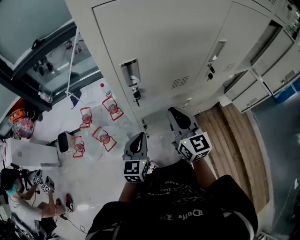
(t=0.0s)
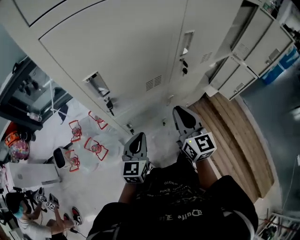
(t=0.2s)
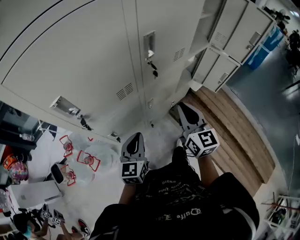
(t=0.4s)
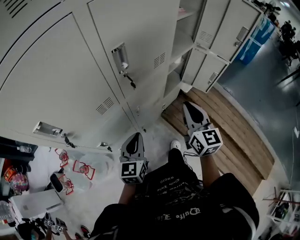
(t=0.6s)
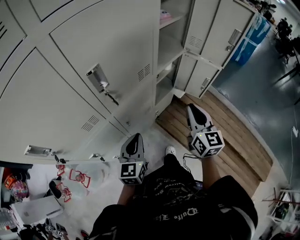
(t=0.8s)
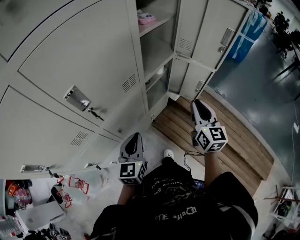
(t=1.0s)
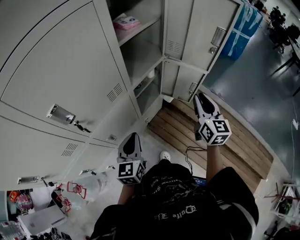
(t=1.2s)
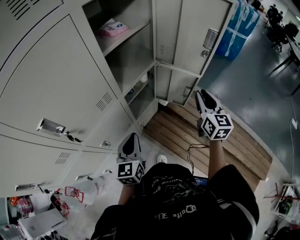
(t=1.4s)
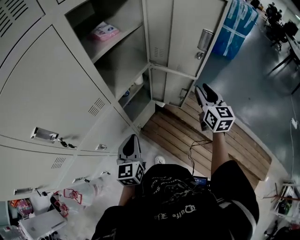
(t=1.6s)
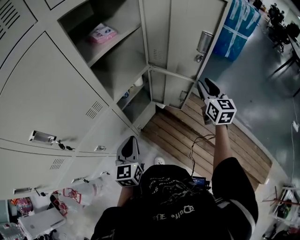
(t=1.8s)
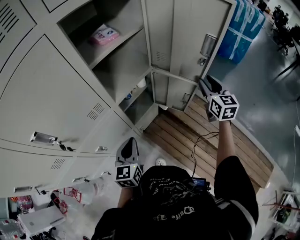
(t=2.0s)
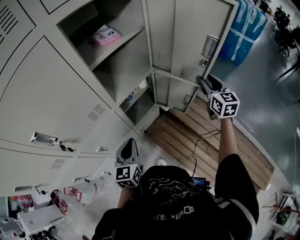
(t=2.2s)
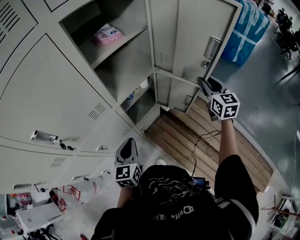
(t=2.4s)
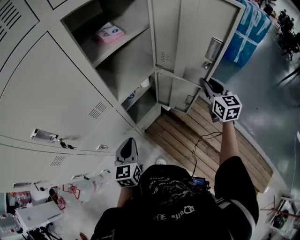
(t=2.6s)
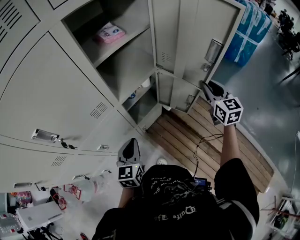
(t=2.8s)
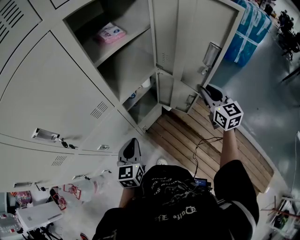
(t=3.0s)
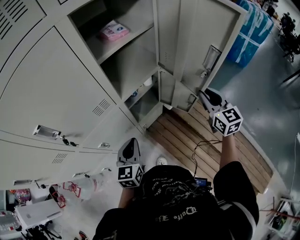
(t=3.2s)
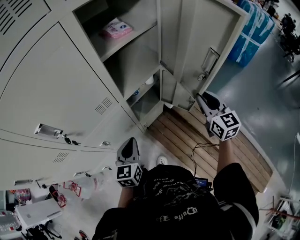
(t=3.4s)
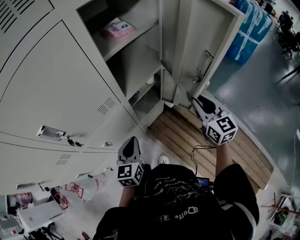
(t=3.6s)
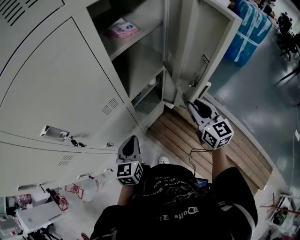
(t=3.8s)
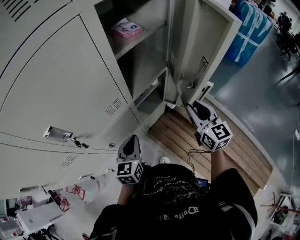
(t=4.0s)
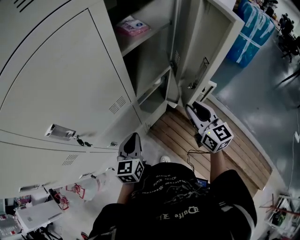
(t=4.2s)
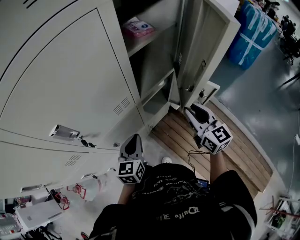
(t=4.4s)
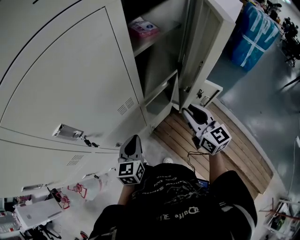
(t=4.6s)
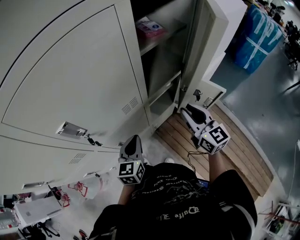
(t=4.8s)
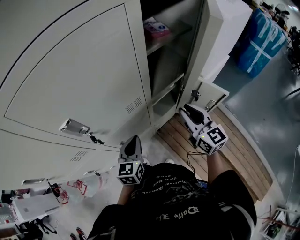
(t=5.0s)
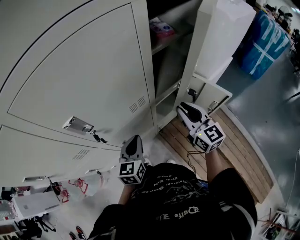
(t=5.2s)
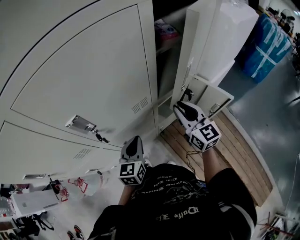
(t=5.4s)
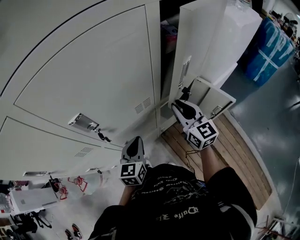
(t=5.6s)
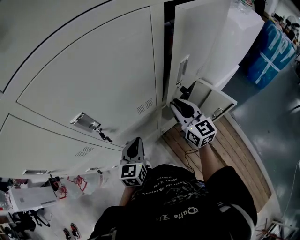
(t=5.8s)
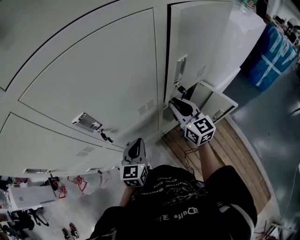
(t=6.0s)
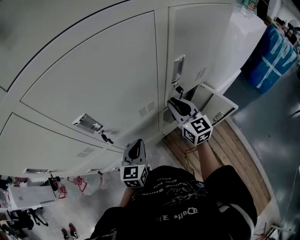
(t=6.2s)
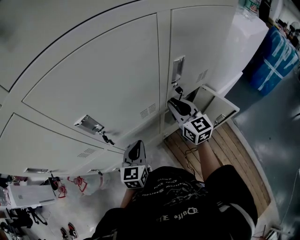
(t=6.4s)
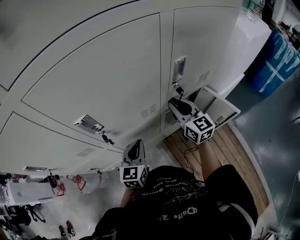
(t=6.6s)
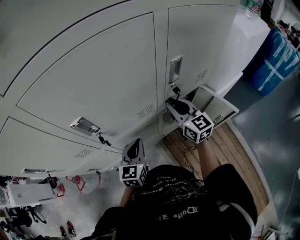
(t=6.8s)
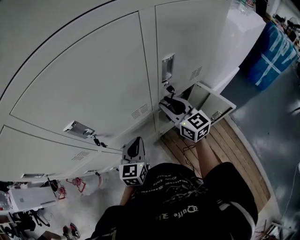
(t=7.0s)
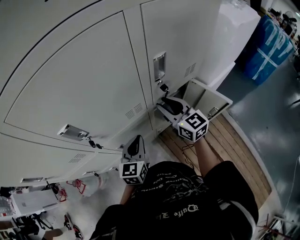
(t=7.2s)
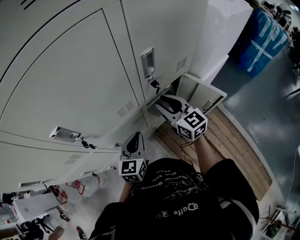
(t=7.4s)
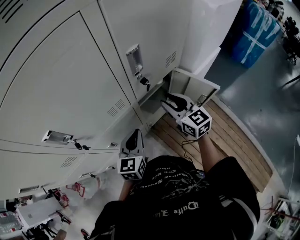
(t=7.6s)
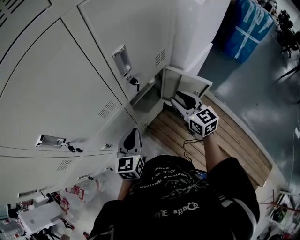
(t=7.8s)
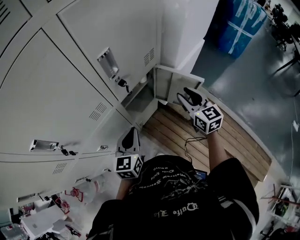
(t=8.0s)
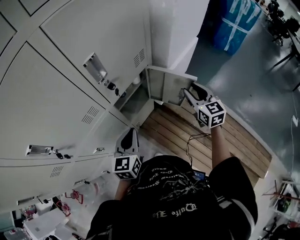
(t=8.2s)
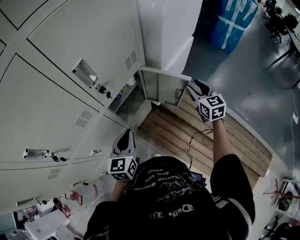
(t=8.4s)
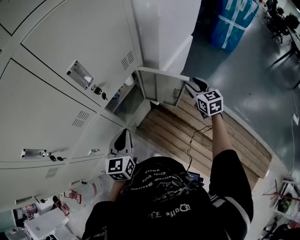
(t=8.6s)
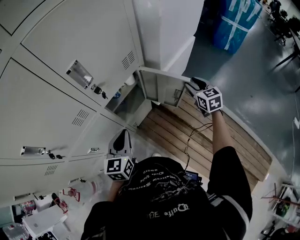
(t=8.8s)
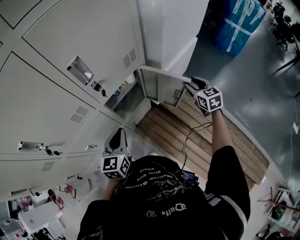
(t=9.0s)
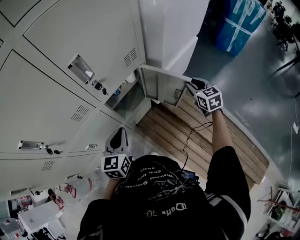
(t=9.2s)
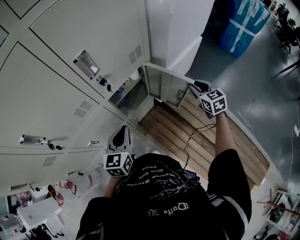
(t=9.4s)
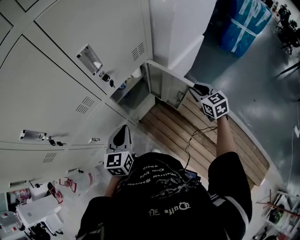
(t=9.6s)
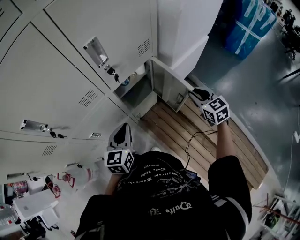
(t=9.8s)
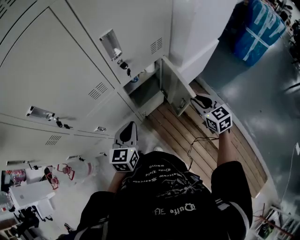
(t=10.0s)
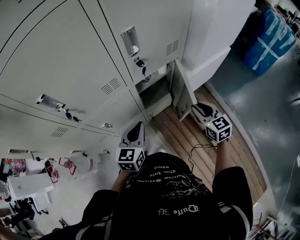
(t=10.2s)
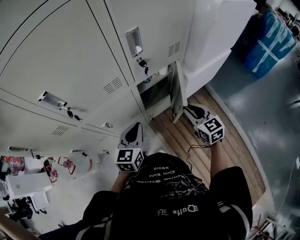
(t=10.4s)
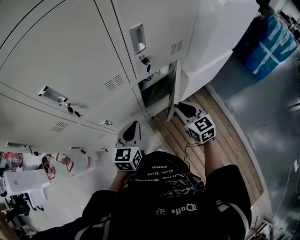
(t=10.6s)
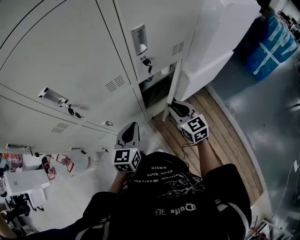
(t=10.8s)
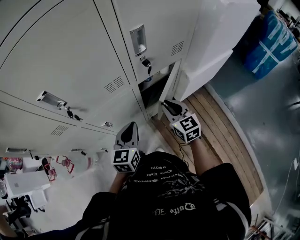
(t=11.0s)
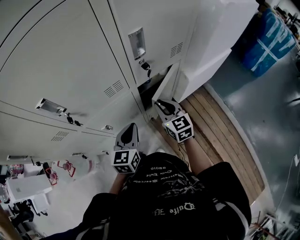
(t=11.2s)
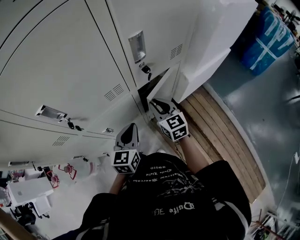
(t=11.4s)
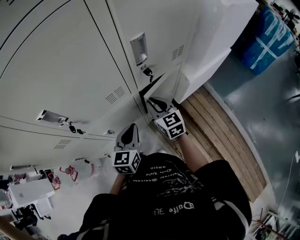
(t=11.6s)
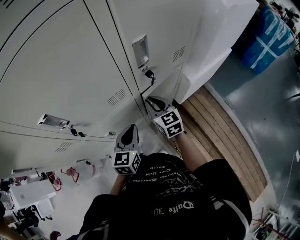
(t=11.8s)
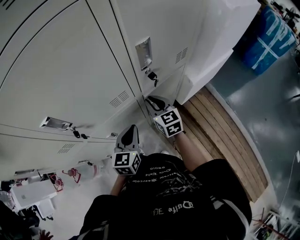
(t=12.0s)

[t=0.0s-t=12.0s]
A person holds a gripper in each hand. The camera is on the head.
t=0.0s to t=1.6s: The two grippers travel together, approximately 60 cm. The right gripper rotates about 40 degrees, and opens up. Meanwhile the left gripper turns by approximately 20 degrees.
t=3.0s to t=4.4s: The right gripper is displaced to the left by roughly 20 cm, while the left gripper moves to the left, some 5 cm.
t=4.4s to t=6.0s: The left gripper travels to the left by some 5 cm. The right gripper shifts roughly 15 cm to the left and forward.
t=6.0s to t=7.6s: The two grippers go roughly 10 cm to the right.
t=7.6s to t=9.0s: The right gripper shifts roughly 30 cm to the right, and rotates some 30 degrees; the left gripper is displaced to the right by about 5 cm.
t=9.0s to t=10.4s: The right gripper travels to the left and backward by about 20 cm, swivels roughly 20 degrees, and closes up. The left gripper changes place by roughly 5 cm.
t=10.4s to t=12.0s: The right gripper goes some 20 cm to the left and forward. Meanwhile the left gripper goes some 5 cm forward.

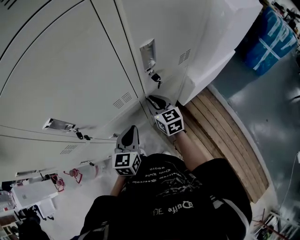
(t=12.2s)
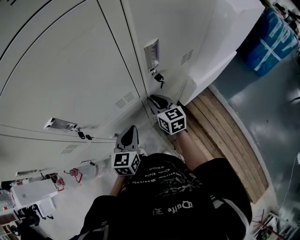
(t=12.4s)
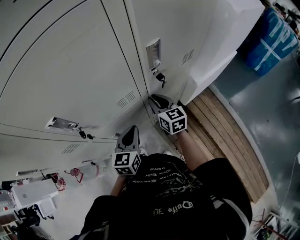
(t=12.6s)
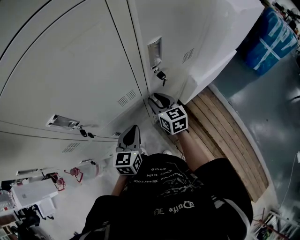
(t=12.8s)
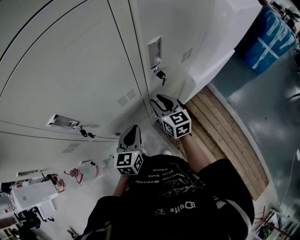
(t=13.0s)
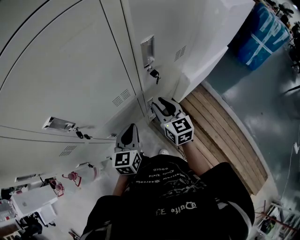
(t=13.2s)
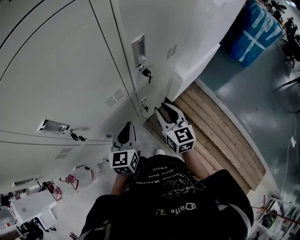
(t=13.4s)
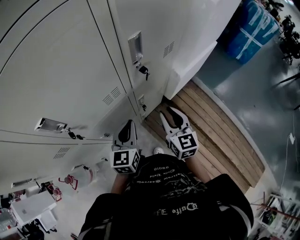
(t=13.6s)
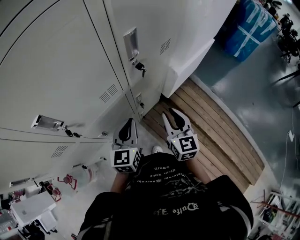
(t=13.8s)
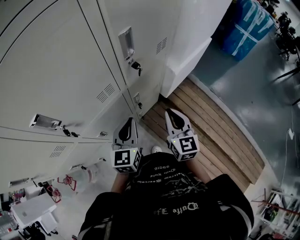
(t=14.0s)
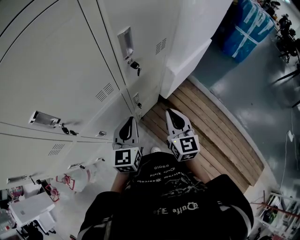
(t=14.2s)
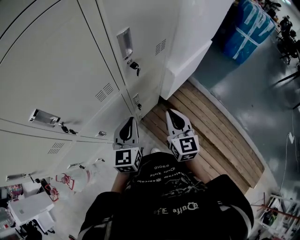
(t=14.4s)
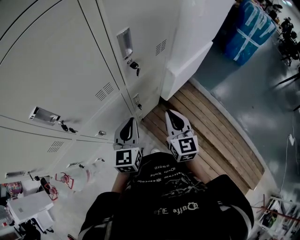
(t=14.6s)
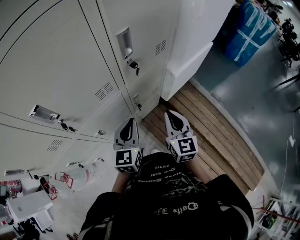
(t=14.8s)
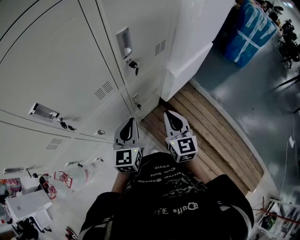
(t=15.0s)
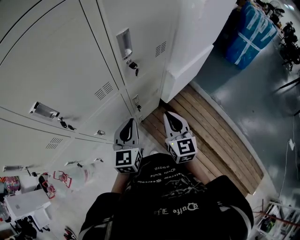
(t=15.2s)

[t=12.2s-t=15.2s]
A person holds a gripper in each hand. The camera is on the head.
t=12.2s to t=13.8s: The right gripper heads backward and to the right, covering approximately 15 cm, and rotates roughly 20 degrees.
t=13.8s to t=15.2s: The right gripper closes its fingers.

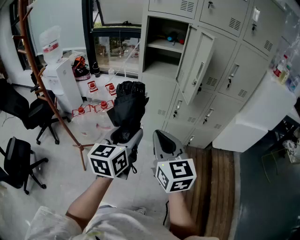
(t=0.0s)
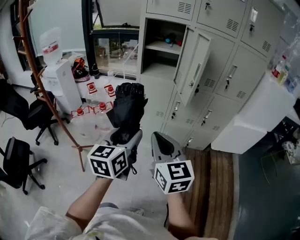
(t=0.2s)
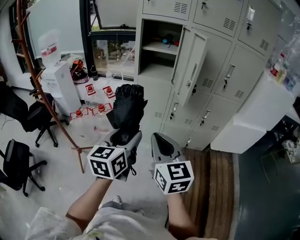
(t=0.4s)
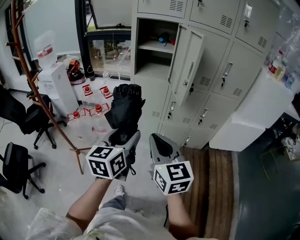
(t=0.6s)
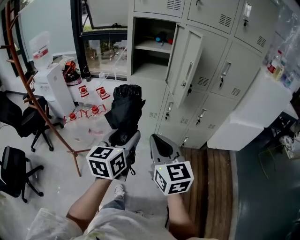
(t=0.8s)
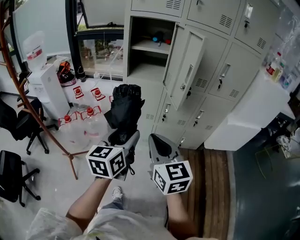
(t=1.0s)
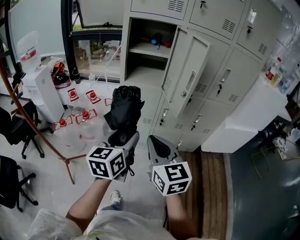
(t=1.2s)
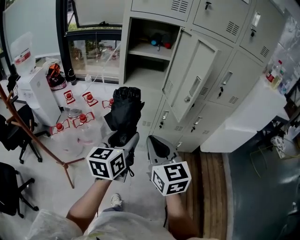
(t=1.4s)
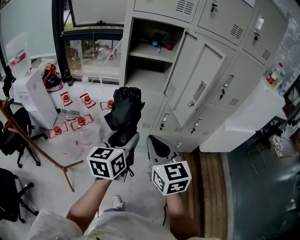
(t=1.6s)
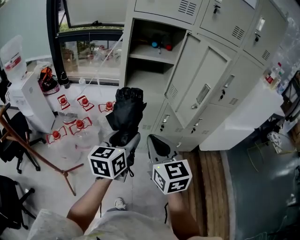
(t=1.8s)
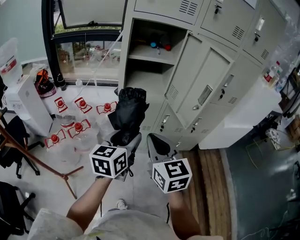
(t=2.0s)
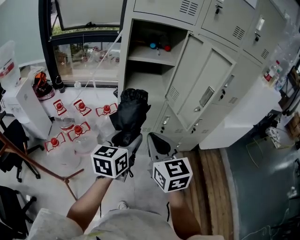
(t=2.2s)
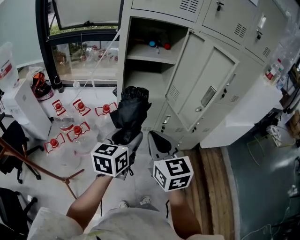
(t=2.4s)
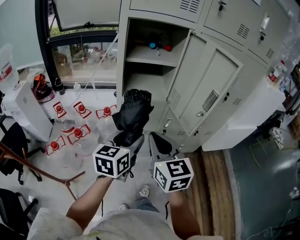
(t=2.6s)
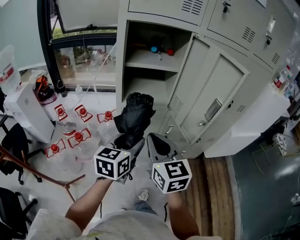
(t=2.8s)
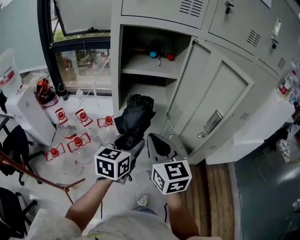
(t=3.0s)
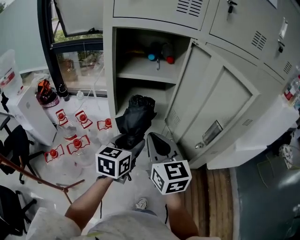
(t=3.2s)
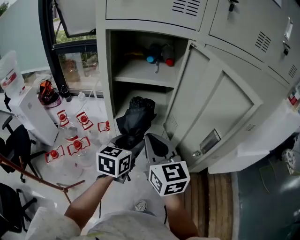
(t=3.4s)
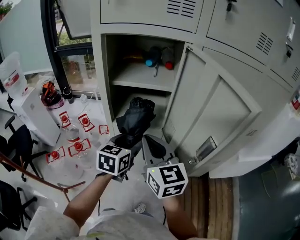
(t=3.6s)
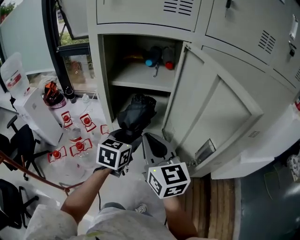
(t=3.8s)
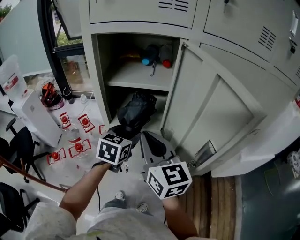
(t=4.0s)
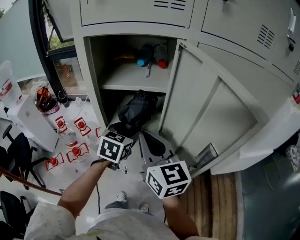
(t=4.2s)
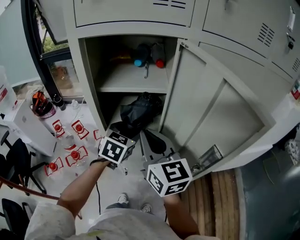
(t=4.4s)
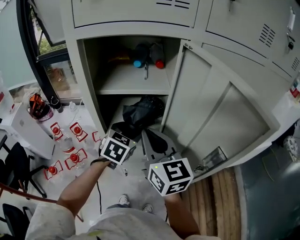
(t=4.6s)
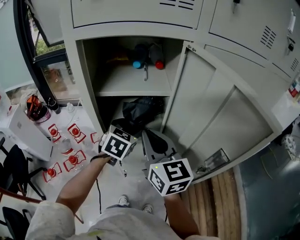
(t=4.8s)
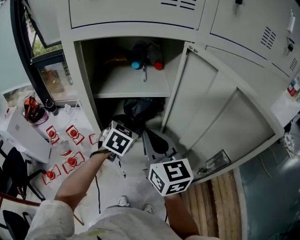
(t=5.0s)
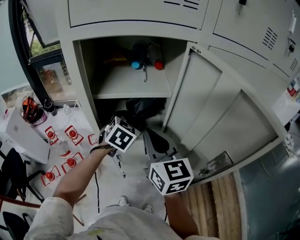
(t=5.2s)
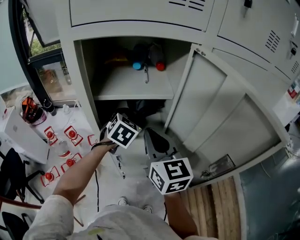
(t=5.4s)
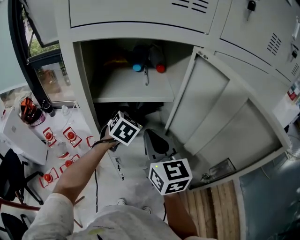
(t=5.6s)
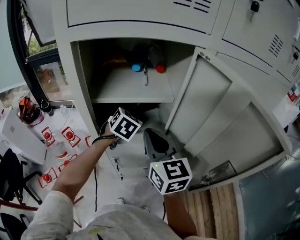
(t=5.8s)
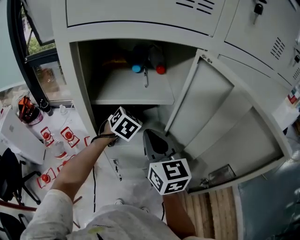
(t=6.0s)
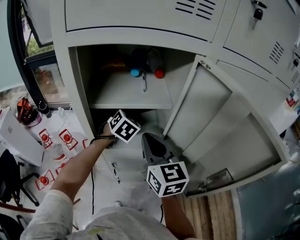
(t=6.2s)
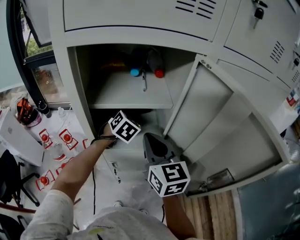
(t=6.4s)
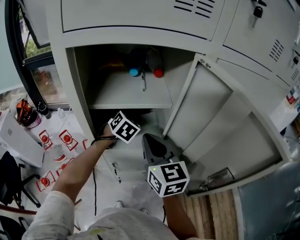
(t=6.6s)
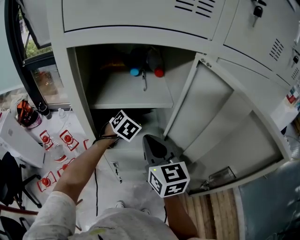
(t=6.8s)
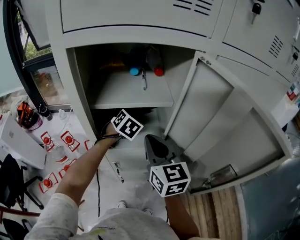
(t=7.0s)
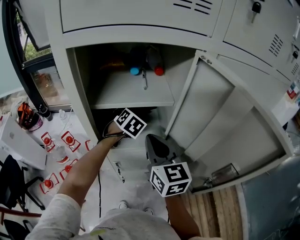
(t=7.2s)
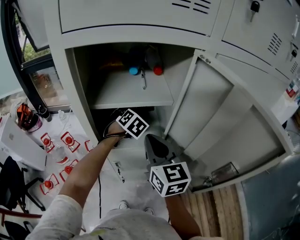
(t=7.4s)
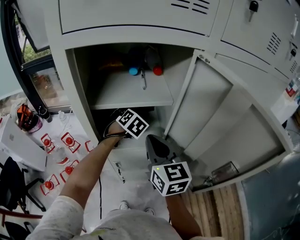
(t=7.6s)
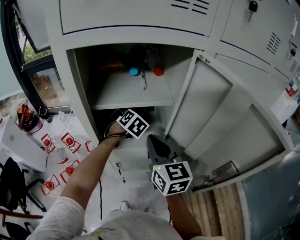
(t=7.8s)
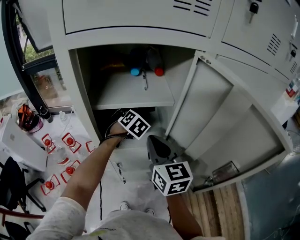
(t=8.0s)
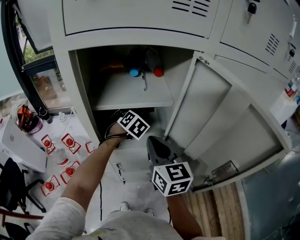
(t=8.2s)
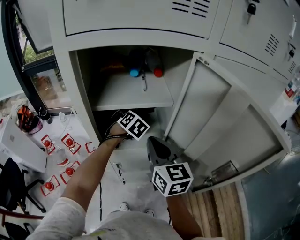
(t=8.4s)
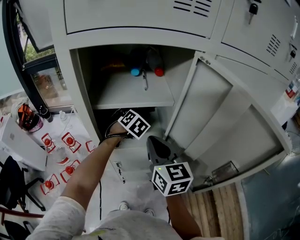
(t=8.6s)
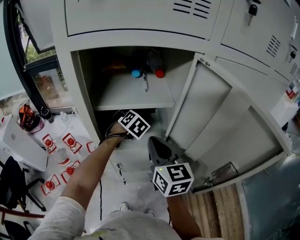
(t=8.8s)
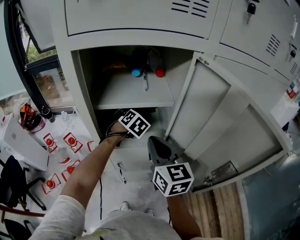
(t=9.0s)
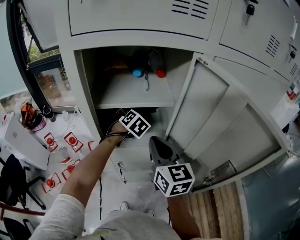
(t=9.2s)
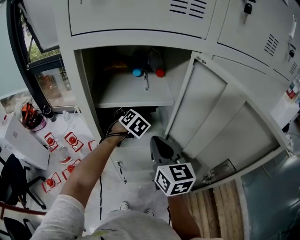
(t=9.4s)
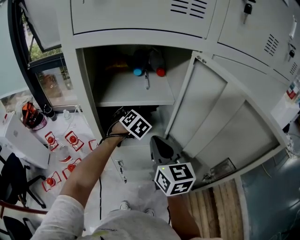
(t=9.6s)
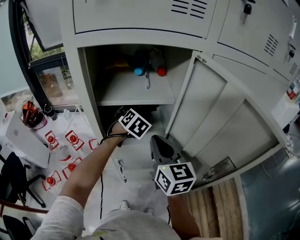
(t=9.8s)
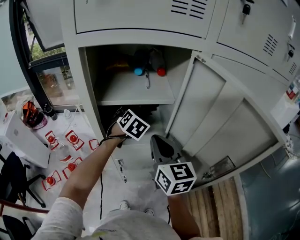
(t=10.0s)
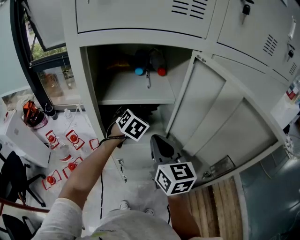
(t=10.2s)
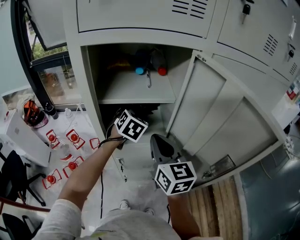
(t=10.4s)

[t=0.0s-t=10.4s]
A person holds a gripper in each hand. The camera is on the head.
t=0.0s to t=1.4s: Both grippers travel together forward, some 15 cm.
t=1.4s to t=3.0s: Both grippers travel together forward, some 20 cm.
t=3.0s to t=4.4s: Both grippers travel together forward, about 15 cm. The left gripper rotates some 30 degrees.
t=4.4s to t=6.0s: The right gripper is displaced forward by approximately 5 cm, while the left gripper is displaced forward by roughly 15 cm.
t=6.0s to t=7.4s: The left gripper heads downward, covering approximately 5 cm.
t=7.4s to t=9.0s: Both grippers stay put.
t=9.0s to t=10.4s: The left gripper heads upward, covering about 5 cm.
